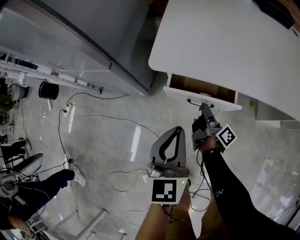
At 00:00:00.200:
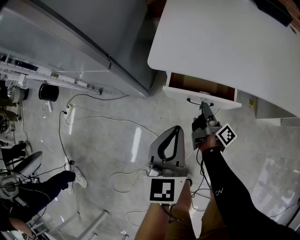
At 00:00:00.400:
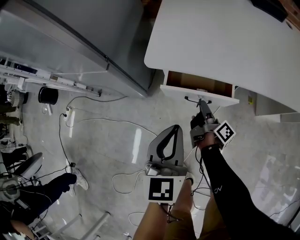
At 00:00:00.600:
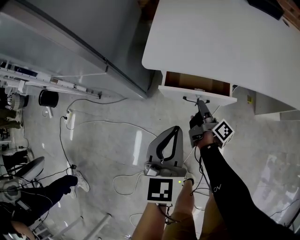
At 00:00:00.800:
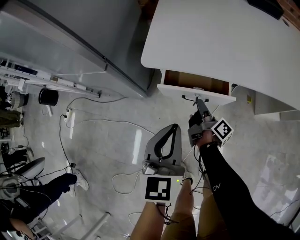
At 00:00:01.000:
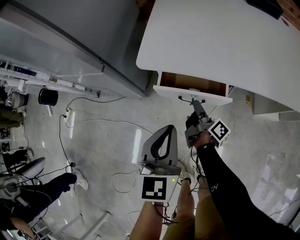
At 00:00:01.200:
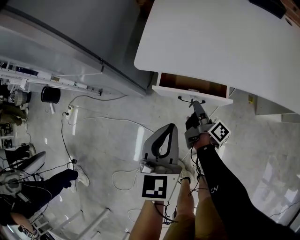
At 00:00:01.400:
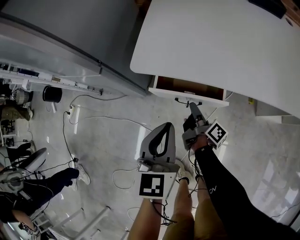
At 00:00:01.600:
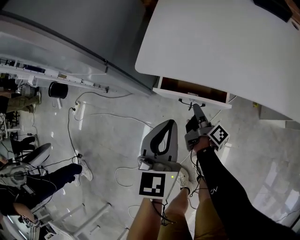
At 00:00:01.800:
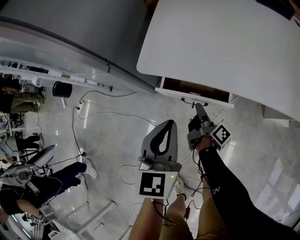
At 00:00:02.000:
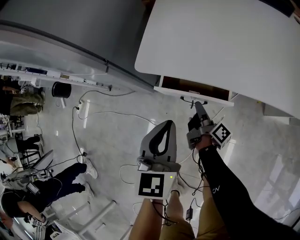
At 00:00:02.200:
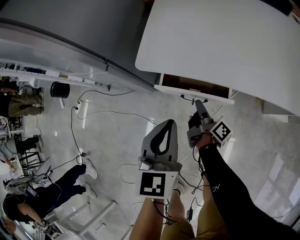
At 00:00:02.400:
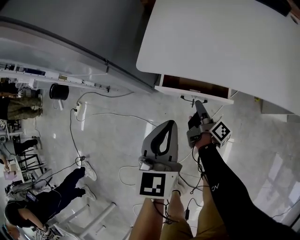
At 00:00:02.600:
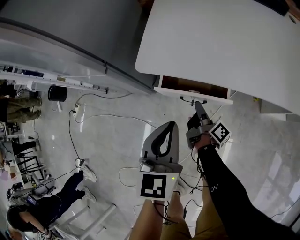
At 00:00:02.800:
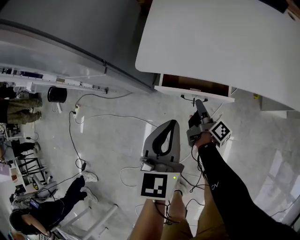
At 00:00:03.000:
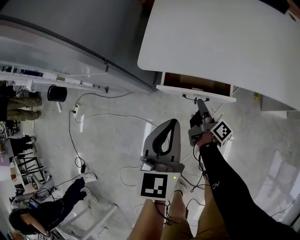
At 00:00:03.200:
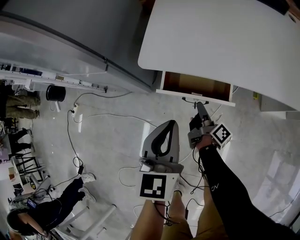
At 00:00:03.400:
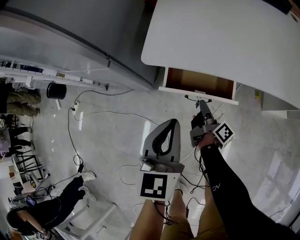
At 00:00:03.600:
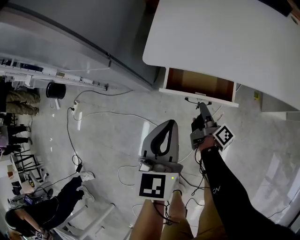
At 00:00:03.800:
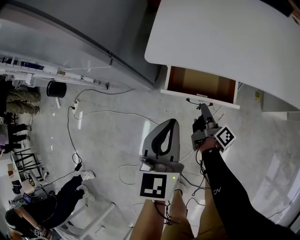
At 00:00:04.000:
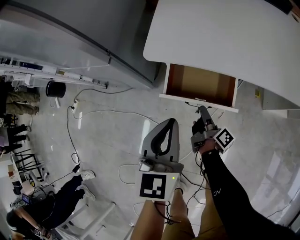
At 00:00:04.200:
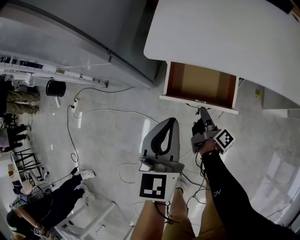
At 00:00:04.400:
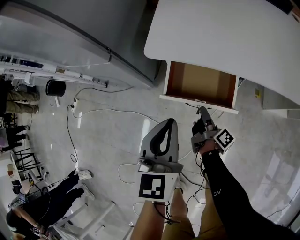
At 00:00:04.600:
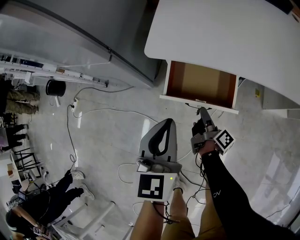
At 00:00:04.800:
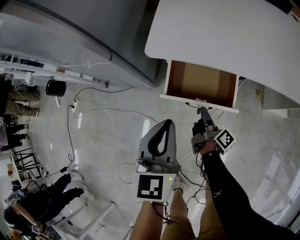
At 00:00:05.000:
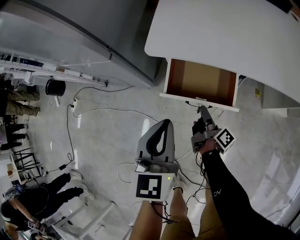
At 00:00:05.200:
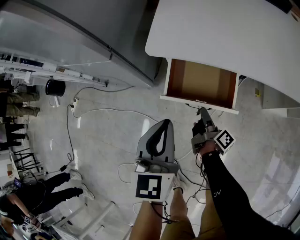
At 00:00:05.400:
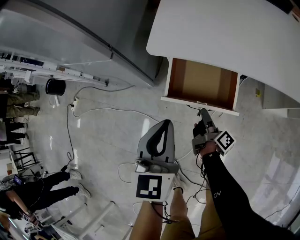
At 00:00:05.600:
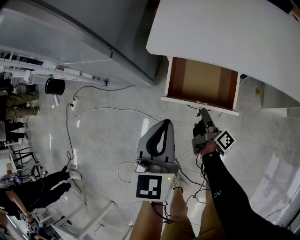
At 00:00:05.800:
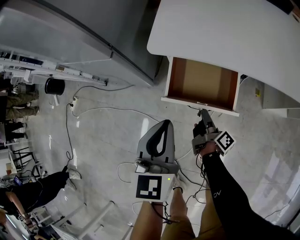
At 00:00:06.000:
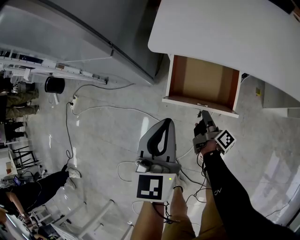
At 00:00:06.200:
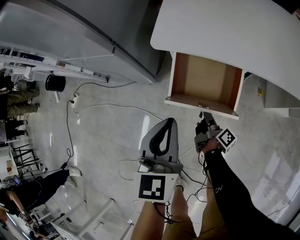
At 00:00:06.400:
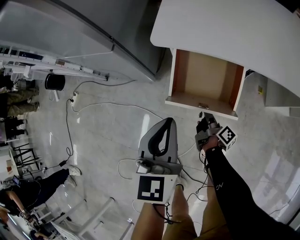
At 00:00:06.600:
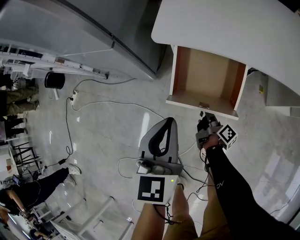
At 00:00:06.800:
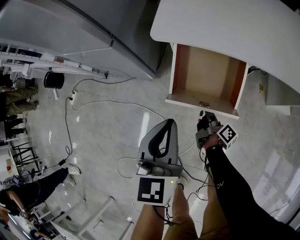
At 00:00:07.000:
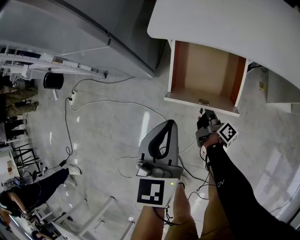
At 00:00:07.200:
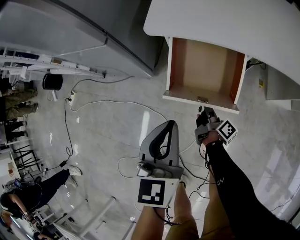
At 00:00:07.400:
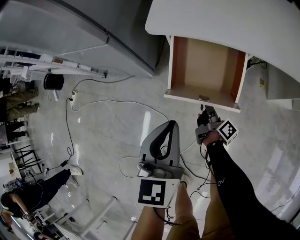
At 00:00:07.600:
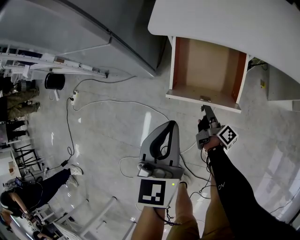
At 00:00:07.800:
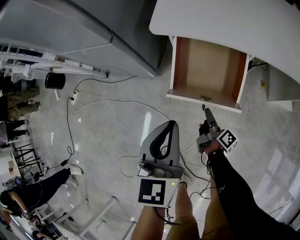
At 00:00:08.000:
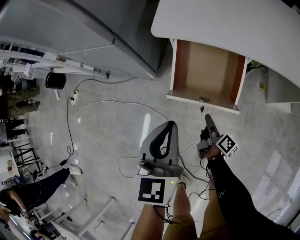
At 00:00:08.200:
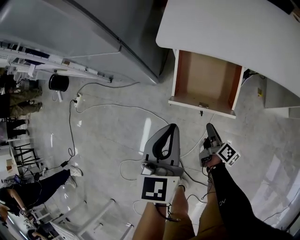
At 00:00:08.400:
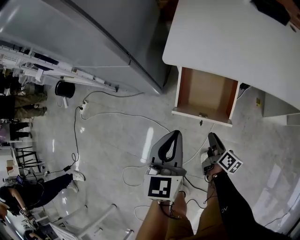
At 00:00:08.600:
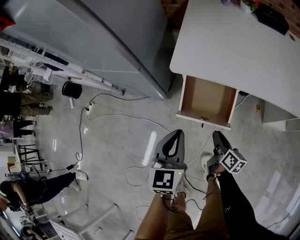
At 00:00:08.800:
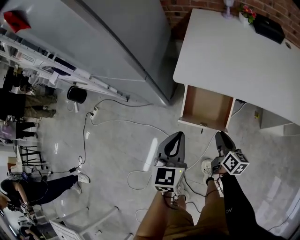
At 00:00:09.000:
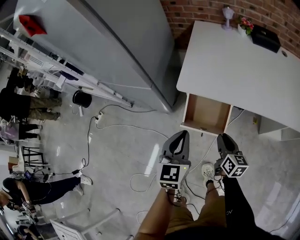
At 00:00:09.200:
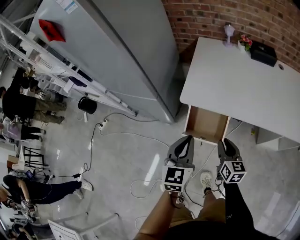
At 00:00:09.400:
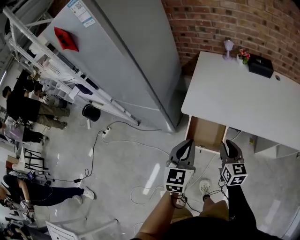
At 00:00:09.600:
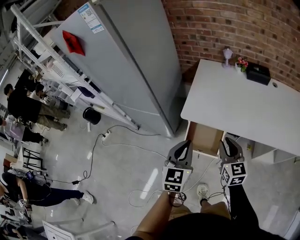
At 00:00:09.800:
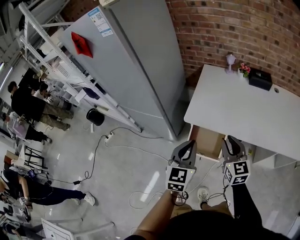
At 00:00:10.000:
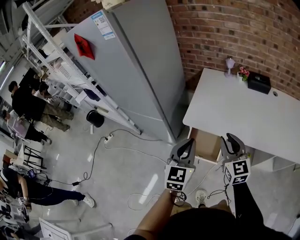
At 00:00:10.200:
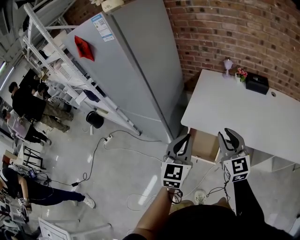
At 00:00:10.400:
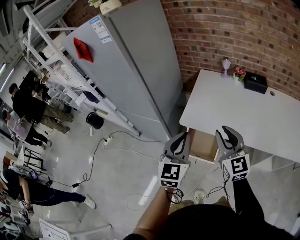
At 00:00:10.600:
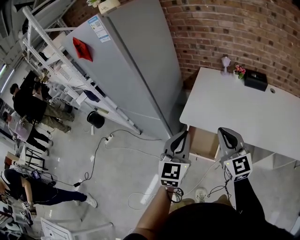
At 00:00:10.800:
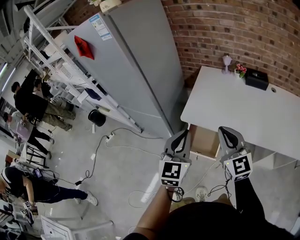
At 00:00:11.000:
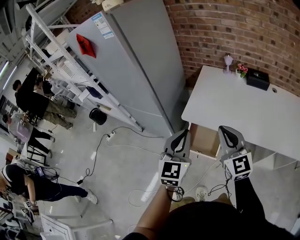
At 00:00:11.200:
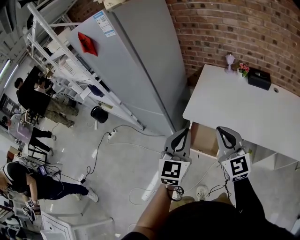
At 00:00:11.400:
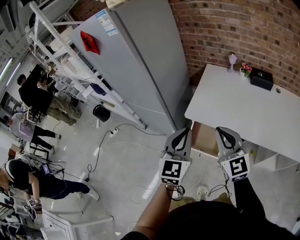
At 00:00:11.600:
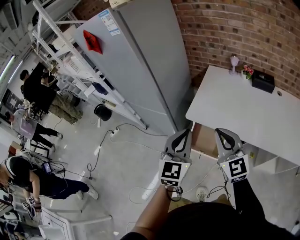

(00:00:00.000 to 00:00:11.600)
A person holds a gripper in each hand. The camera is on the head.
00:00:00.000 - 00:00:02.800: There are only small adjustments of the grippers.
00:00:02.800 - 00:00:04.400: The left gripper ends up about 5 cm from where it was; the right gripper is displaced backward by about 5 cm.
00:00:04.400 - 00:00:05.800: The grippers move only a little.
00:00:05.800 - 00:00:07.200: The right gripper heads downward, covering some 5 cm.
00:00:07.200 - 00:00:08.800: The right gripper moves upward, roughly 25 cm, and rotates around the line of its fingers by some 40 degrees, counterclockwise from behind. Meanwhile the left gripper heads upward, covering roughly 10 cm.
00:00:08.800 - 00:00:10.200: The right gripper heads upward, covering roughly 40 cm, and rolls counterclockwise, seen from behind, by roughly 60 degrees. The left gripper is displaced upward by some 25 cm.
00:00:10.200 - 00:00:11.600: The right gripper moves about 5 cm, and closes up.

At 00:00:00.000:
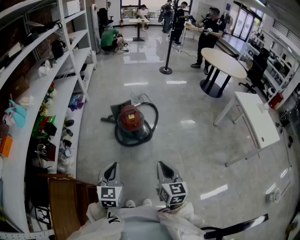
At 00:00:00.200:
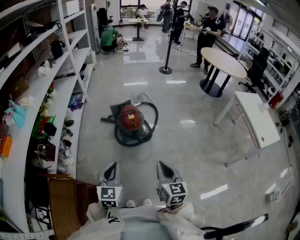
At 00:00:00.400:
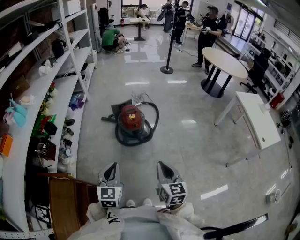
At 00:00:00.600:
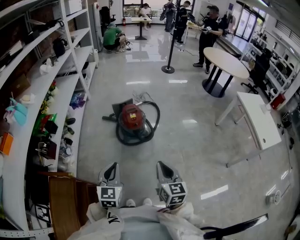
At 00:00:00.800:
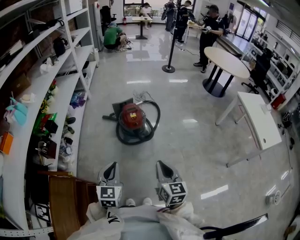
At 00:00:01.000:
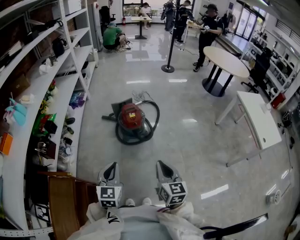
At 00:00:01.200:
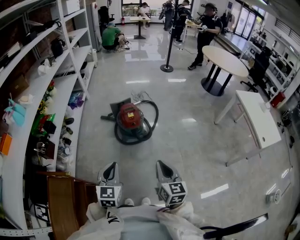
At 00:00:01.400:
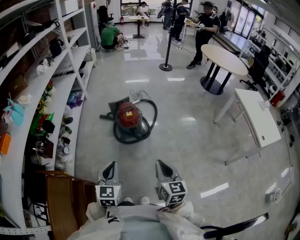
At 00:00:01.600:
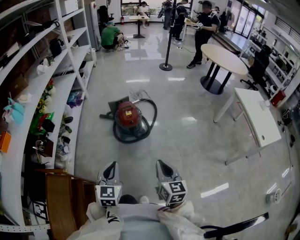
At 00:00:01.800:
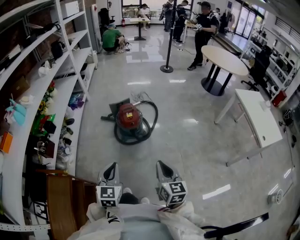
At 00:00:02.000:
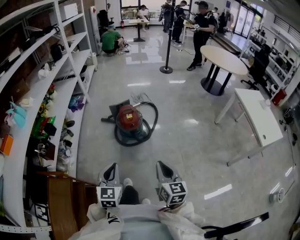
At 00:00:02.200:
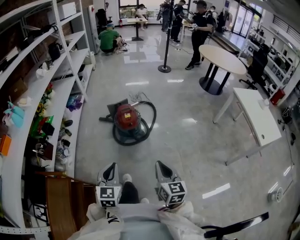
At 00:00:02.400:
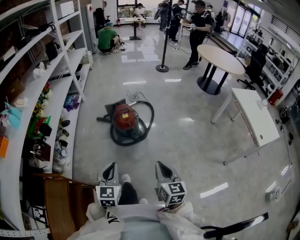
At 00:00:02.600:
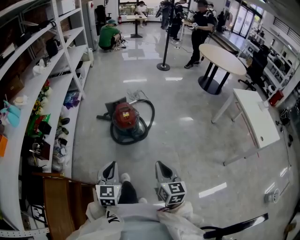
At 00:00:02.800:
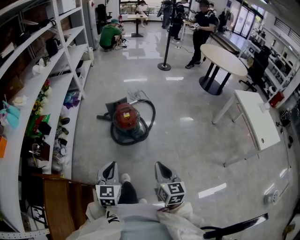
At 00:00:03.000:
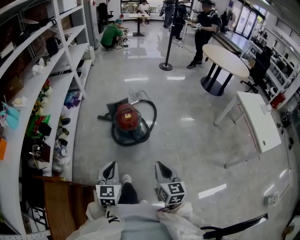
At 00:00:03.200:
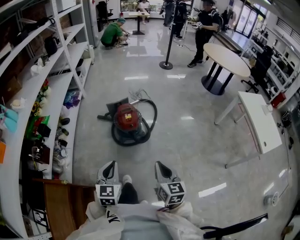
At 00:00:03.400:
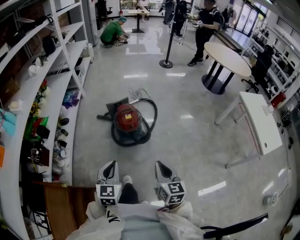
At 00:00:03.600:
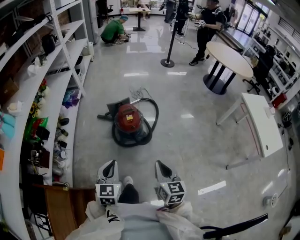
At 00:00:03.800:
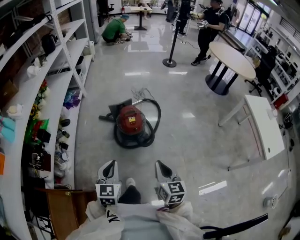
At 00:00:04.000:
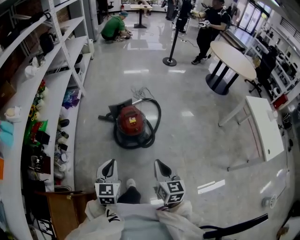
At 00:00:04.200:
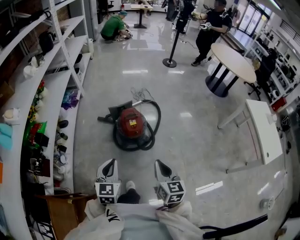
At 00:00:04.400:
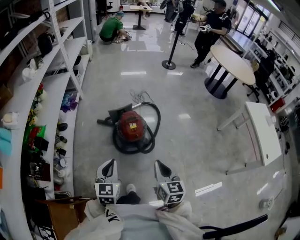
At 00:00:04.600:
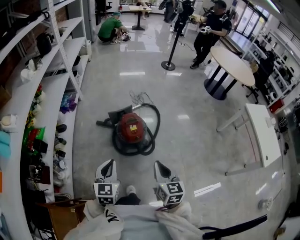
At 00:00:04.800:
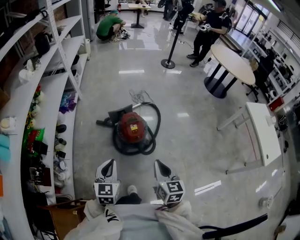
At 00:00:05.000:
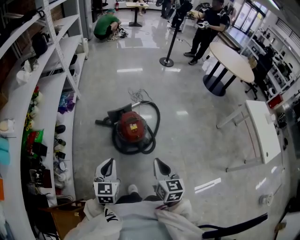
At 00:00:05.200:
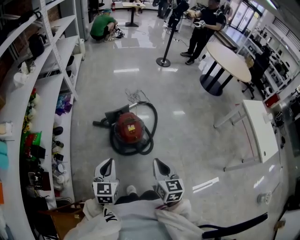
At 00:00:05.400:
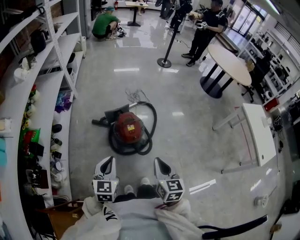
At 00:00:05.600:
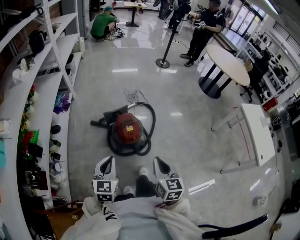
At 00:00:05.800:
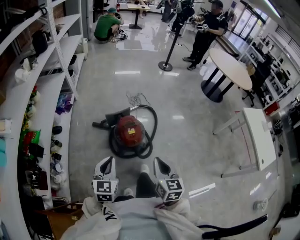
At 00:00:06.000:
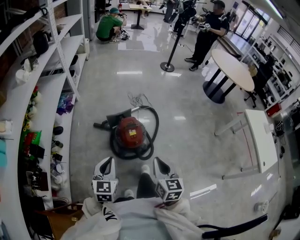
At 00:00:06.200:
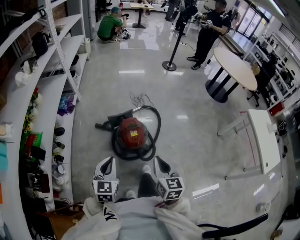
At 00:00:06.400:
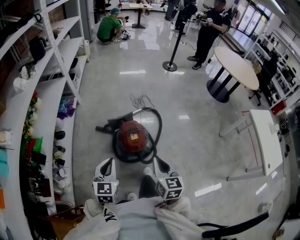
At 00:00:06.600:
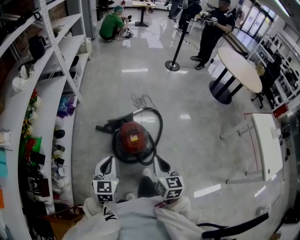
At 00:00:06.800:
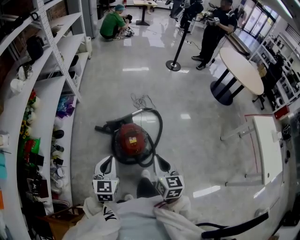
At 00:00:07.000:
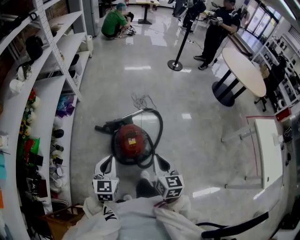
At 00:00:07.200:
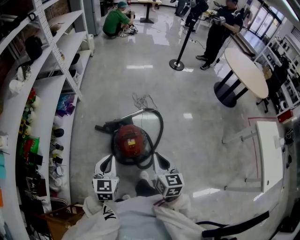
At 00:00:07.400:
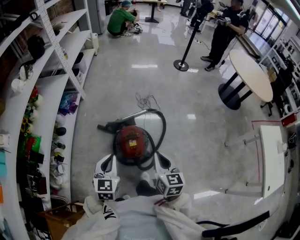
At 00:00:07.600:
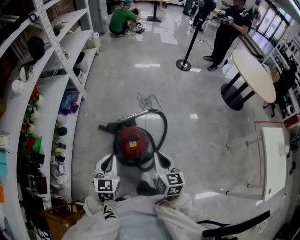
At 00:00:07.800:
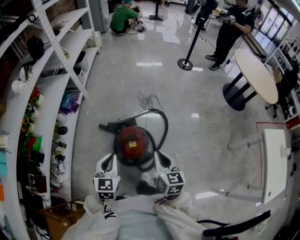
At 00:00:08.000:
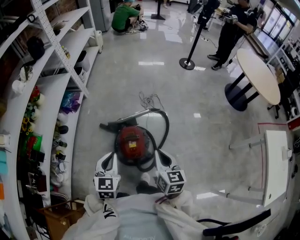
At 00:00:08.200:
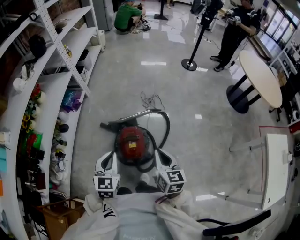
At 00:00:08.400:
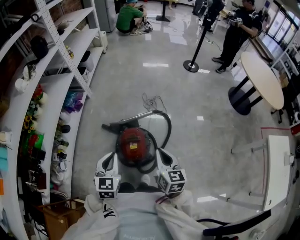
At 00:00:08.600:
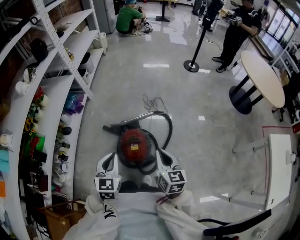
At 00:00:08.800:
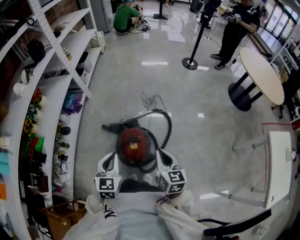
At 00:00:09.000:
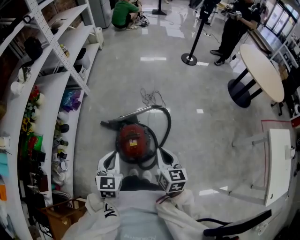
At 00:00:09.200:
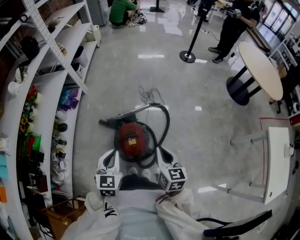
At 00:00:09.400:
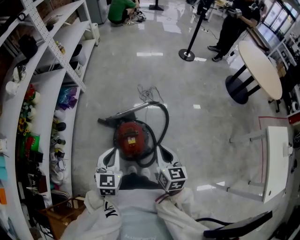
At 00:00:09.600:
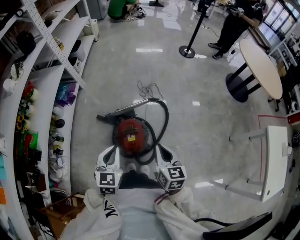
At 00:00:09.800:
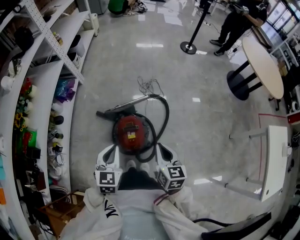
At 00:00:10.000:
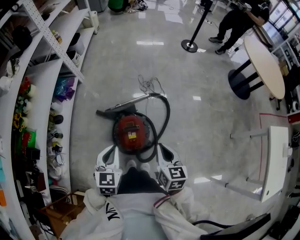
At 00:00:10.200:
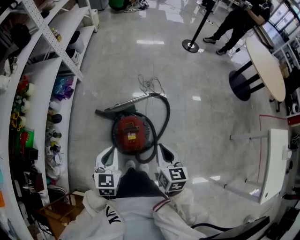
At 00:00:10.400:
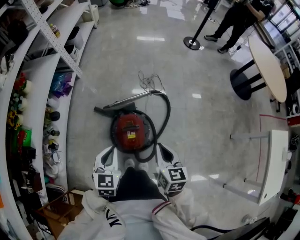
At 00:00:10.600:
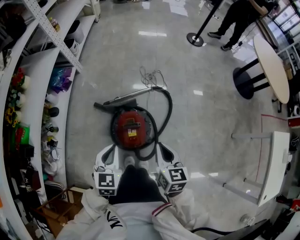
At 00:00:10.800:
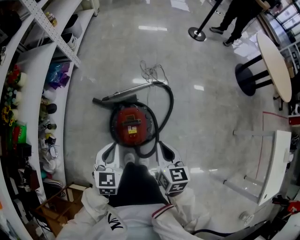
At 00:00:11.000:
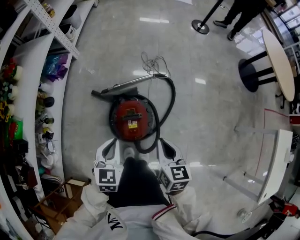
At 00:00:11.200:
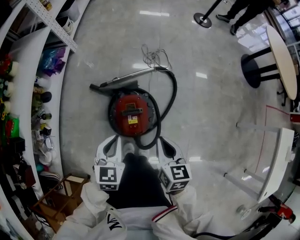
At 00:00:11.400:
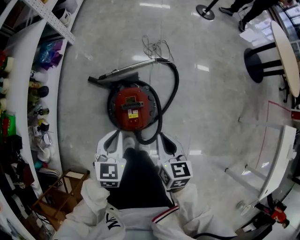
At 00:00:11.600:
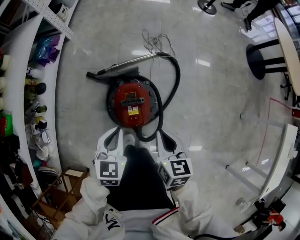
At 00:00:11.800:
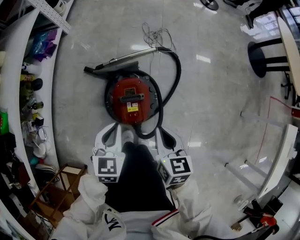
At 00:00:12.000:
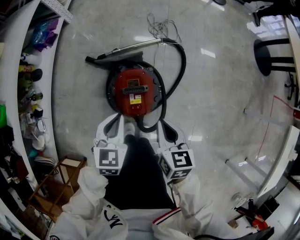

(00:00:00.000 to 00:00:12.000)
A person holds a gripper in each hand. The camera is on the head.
00:00:00.000 - 00:00:01.600: The grippers make only small movements.
00:00:01.600 - 00:00:03.000: The left gripper shifts some 5 cm forward.
00:00:03.000 - 00:00:04.400: Both grippers travel together forward and to the left, roughly 15 cm.
00:00:04.400 - 00:00:06.000: The two grippers go about 10 cm forward.
00:00:06.000 - 00:00:07.600: The left gripper is displaced forward and to the right by about 15 cm, while the right gripper heads forward, covering some 15 cm.
00:00:07.600 - 00:00:09.000: The right gripper ends up roughly 5 cm from where it was.
00:00:09.000 - 00:00:10.400: The right gripper shifts by approximately 5 cm; the left gripper shifts about 5 cm downward.
00:00:10.400 - 00:00:12.000: Both grippers move downward, roughly 15 cm.
